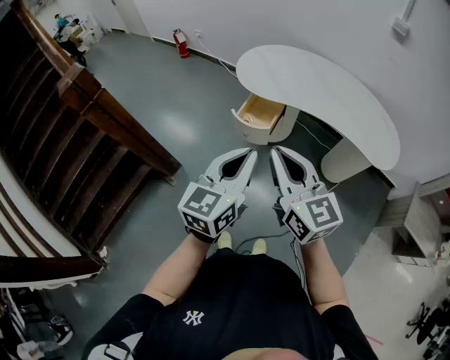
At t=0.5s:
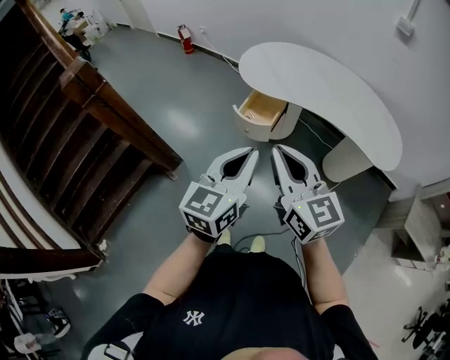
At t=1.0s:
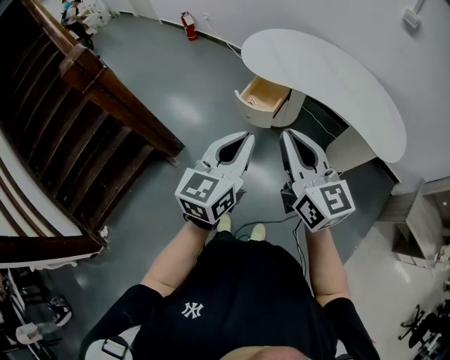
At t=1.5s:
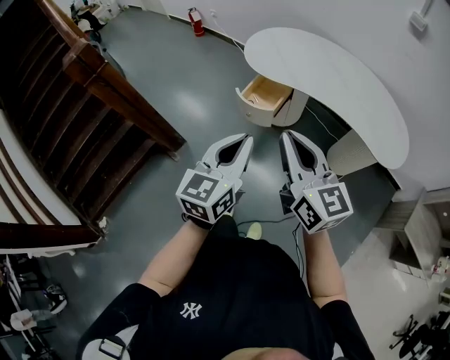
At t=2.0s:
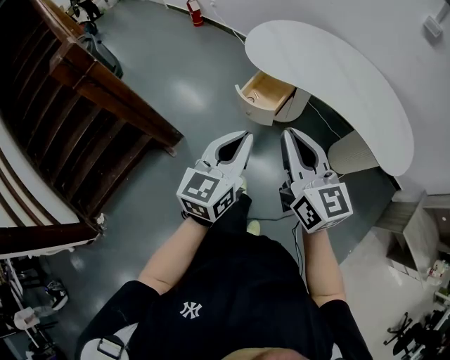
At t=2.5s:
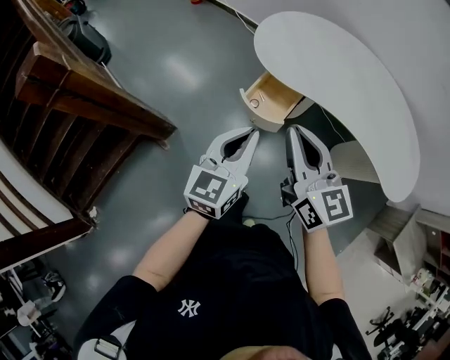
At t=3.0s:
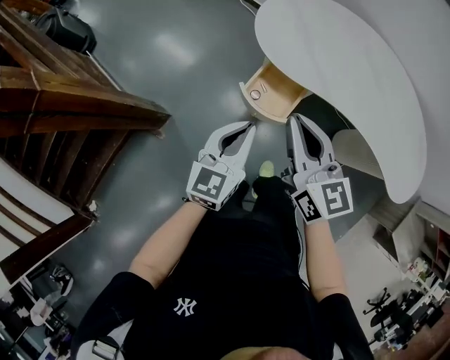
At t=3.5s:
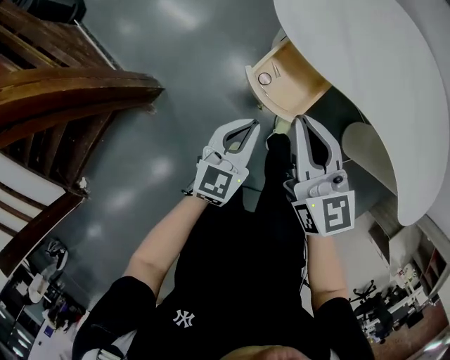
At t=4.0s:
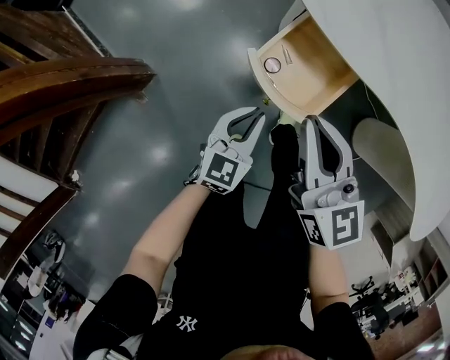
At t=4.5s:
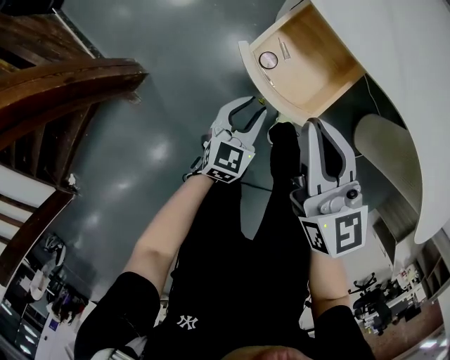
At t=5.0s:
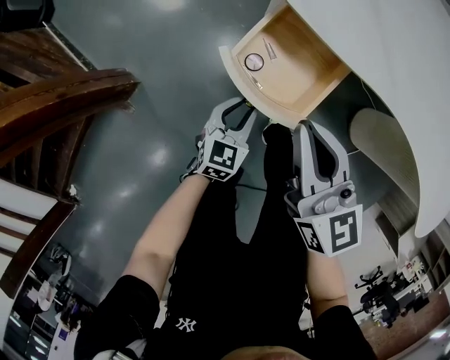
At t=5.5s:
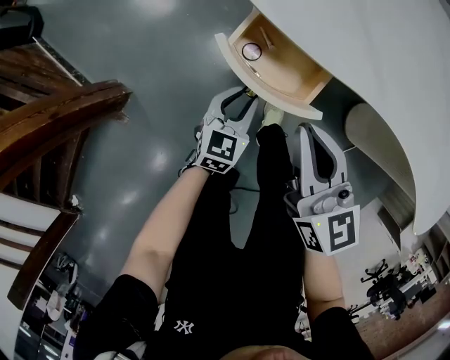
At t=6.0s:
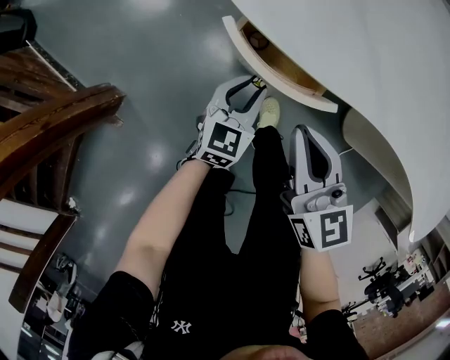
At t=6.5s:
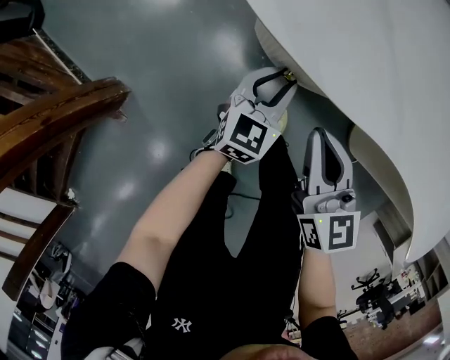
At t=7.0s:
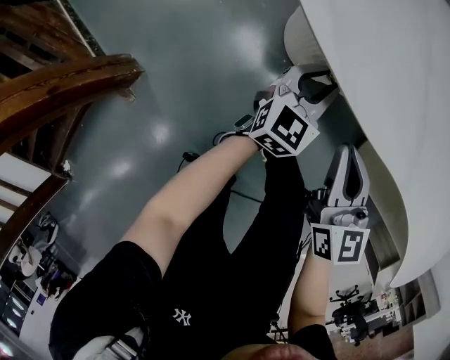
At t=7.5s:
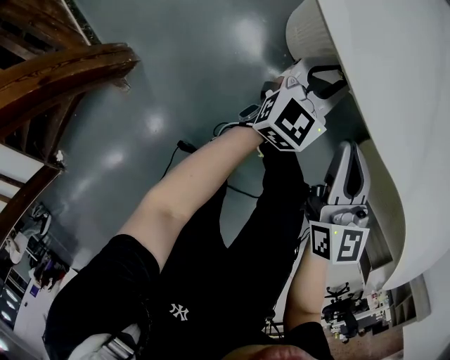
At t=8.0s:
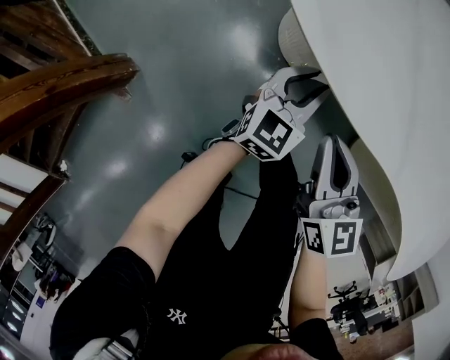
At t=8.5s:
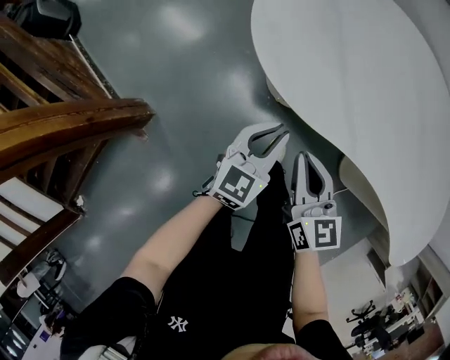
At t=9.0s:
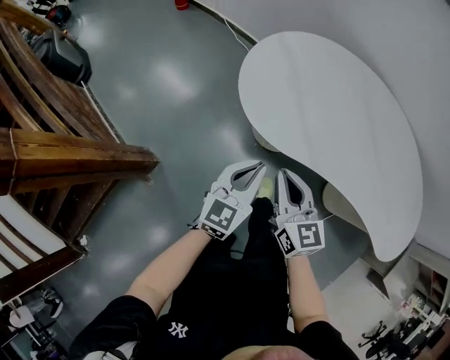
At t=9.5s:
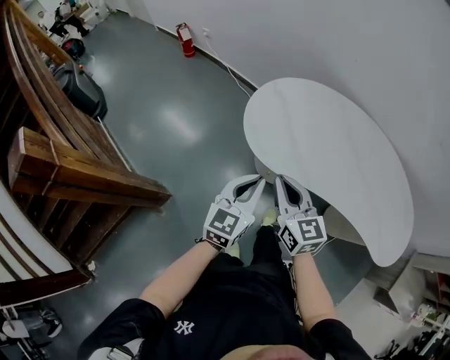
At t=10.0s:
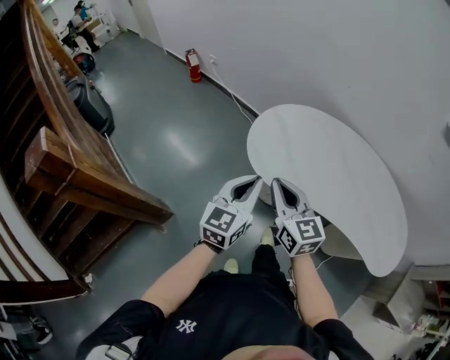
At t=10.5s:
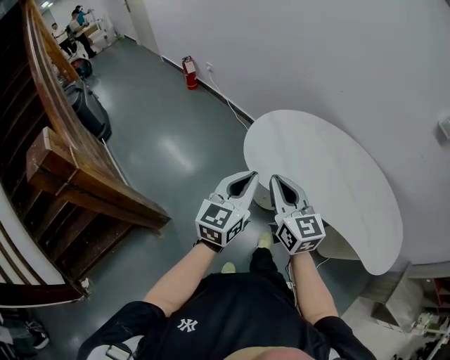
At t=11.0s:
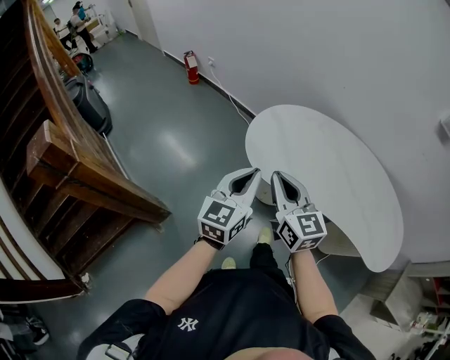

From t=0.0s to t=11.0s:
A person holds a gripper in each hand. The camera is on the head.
From t=0.0s to t=2.0s: The left gripper travels forward and downward by roughly 10 cm, while the right gripper goes approximately 10 cm forward and to the right.
From t=2.0s to t=3.5s: The left gripper travels downward and forward by approximately 40 cm; the right gripper travels forward and downward by roughly 40 cm.
From t=3.5s to t=5.5s: The left gripper is displaced downward by about 25 cm, and opens up. Meanwhile the right gripper heads downward and to the right, covering about 20 cm.
From t=5.5s to t=7.5s: The left gripper heads forward and to the right, covering roughly 20 cm. Meanwhile the right gripper shifts some 10 cm downward and forward.
From t=7.5s to t=9.0s: The right gripper moves upward, roughly 25 cm. The left gripper goes some 35 cm upward and backward, and closes its fingers.
From t=9.0s to t=11.0s: Both grippers move upward, about 20 cm.

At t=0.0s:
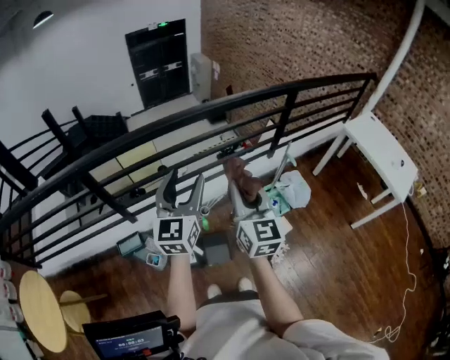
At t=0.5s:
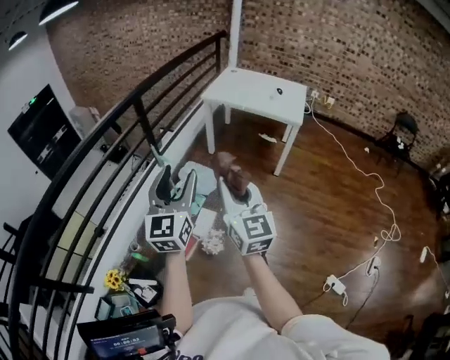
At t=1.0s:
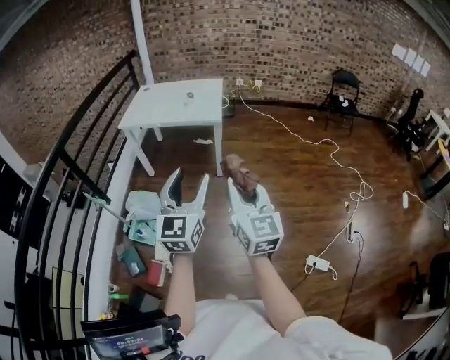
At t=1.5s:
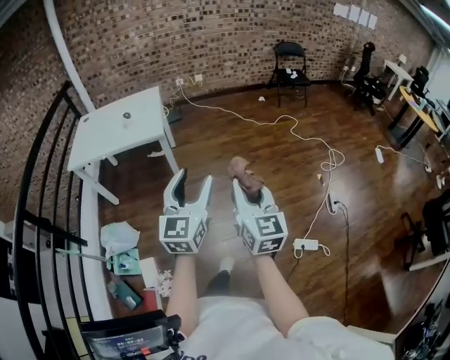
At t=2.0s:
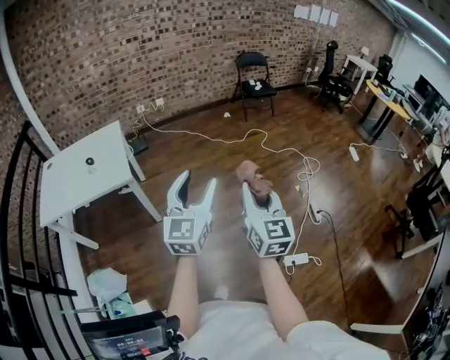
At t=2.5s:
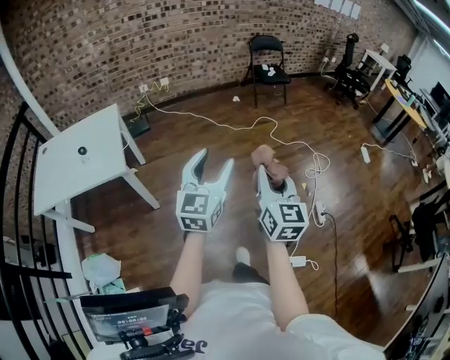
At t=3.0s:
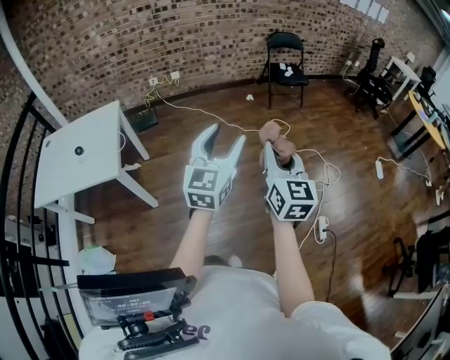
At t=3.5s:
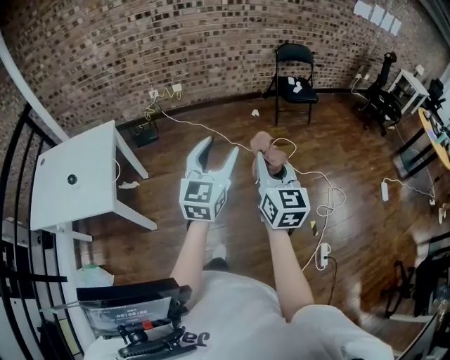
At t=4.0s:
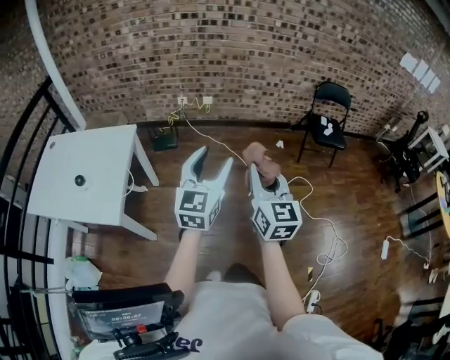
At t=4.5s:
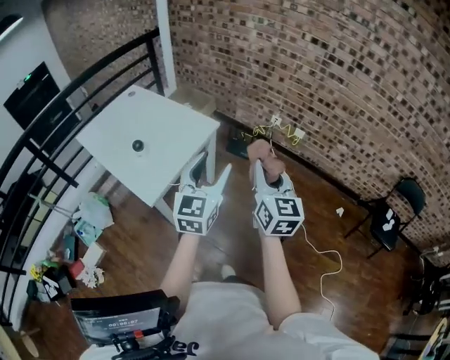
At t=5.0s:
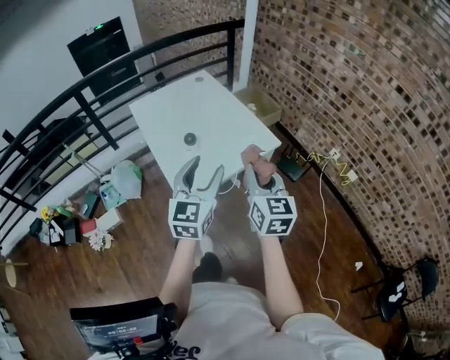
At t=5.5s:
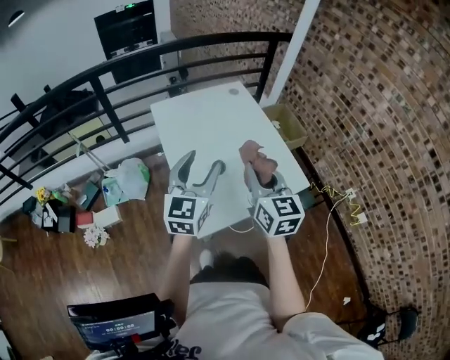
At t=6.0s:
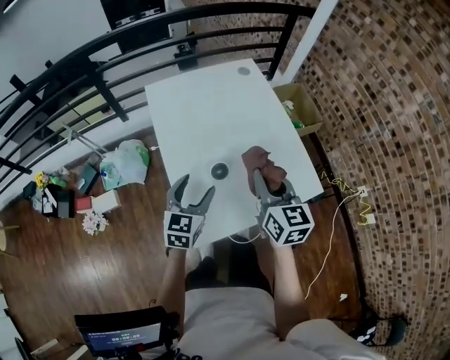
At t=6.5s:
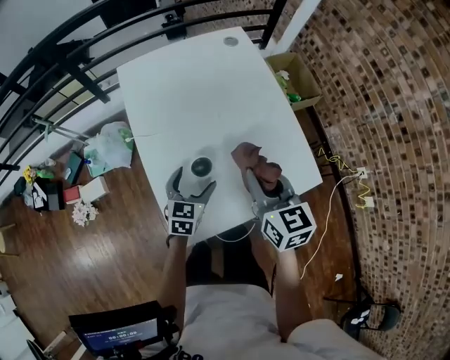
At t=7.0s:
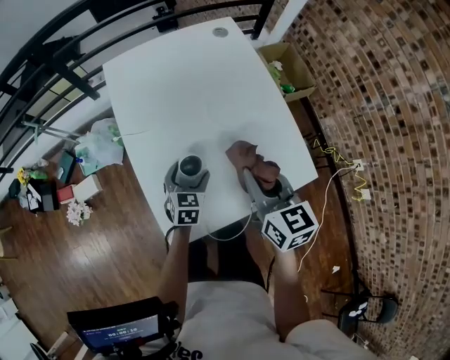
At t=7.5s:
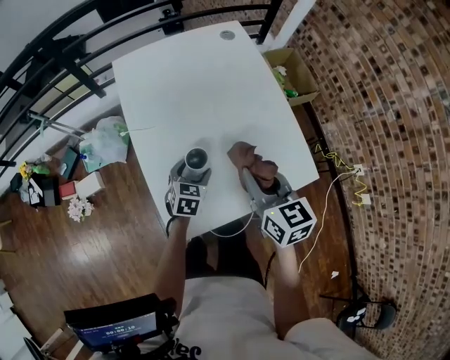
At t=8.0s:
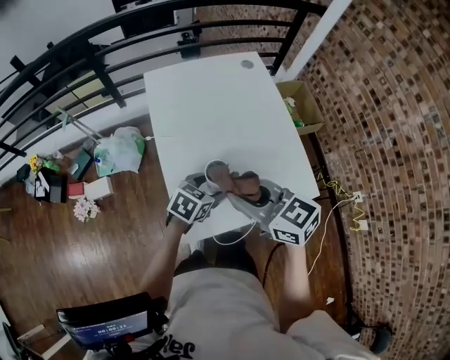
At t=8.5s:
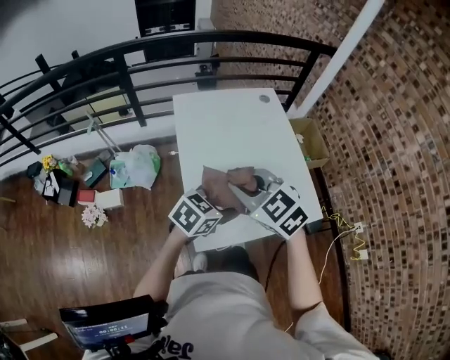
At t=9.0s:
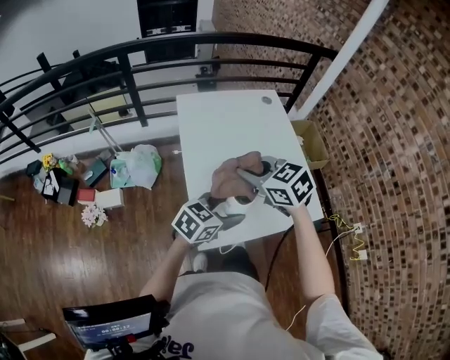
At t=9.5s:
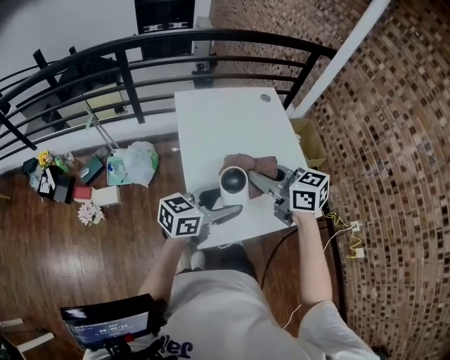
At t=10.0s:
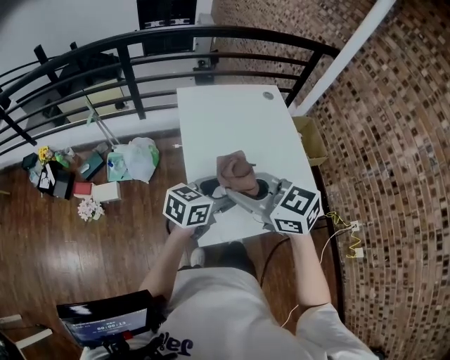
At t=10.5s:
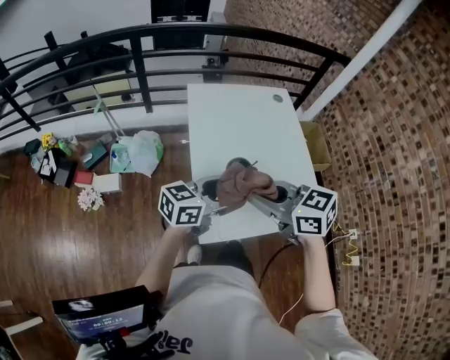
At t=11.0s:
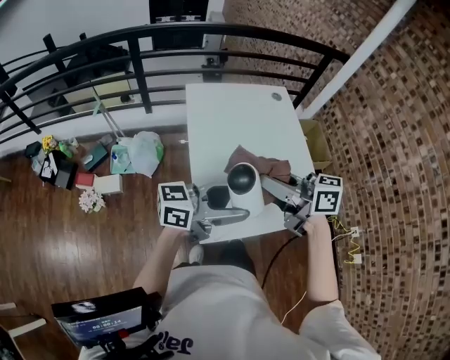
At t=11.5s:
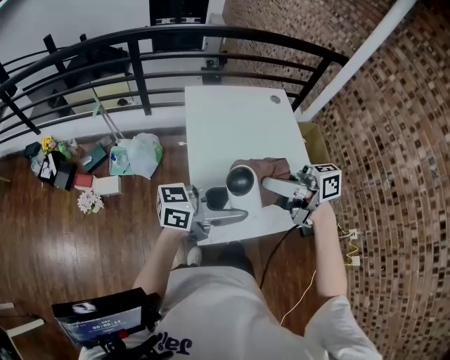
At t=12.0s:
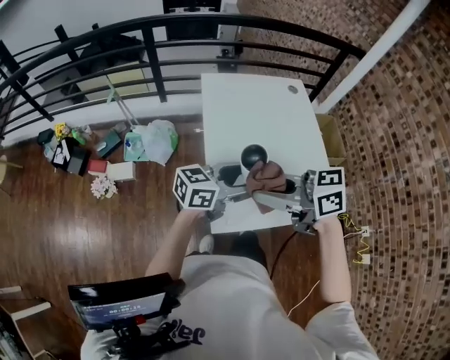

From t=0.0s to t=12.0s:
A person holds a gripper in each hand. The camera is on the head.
From t=0.0s to t=2.0s: Both grippers are carried about 1 m. The right gripper turns by roughly 90 degrees, while the left gripper rotates about 90 degrees.
From t=2.0s to t=4.0s: The pair of grippers is taken forward, about 60 cm. The right gripper turns by roughly 20 degrees.
From t=4.0s to t=6.0s: The pair of grippers is taken roughly 70 cm. The right gripper rotates roughly 80 degrees, while the left gripper swivels roughly 80 degrees.
From t=6.0s to t=8.0s: The left gripper goes approximately 10 cm to the right and downward, and swivels approximately 30 degrees, while the right gripper moves to the left, about 10 cm, and rotates approximately 50 degrees.
From t=8.0s to t=10.0s: The left gripper heads upward and to the left, covering roughly 15 cm, and rotates approximately 30 degrees. Meanwhile the right gripper goes left and right, about 10 cm each way, reversing 2 times.
From t=10.0s to t=12.0s: The right gripper turns by some 30 degrees.

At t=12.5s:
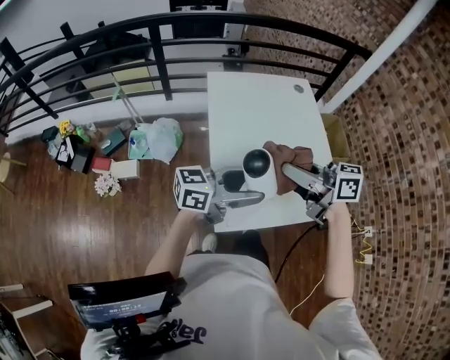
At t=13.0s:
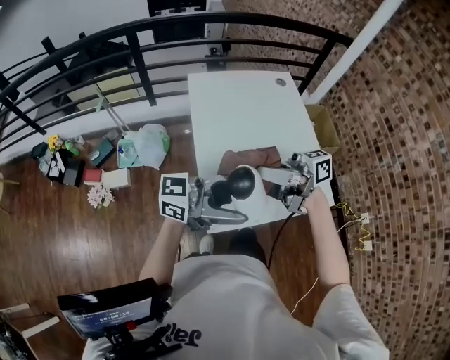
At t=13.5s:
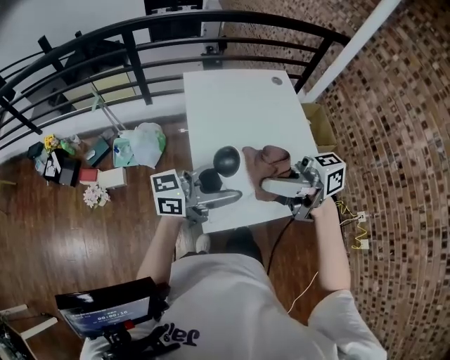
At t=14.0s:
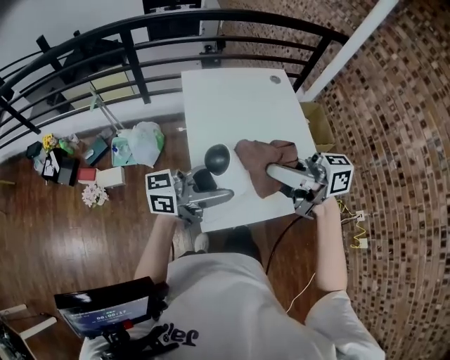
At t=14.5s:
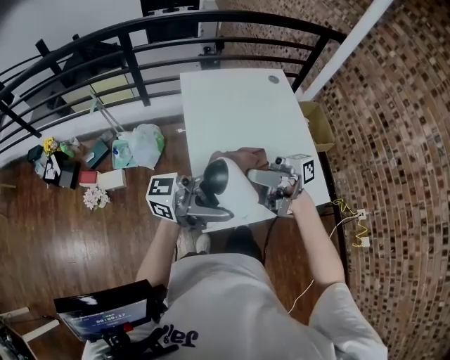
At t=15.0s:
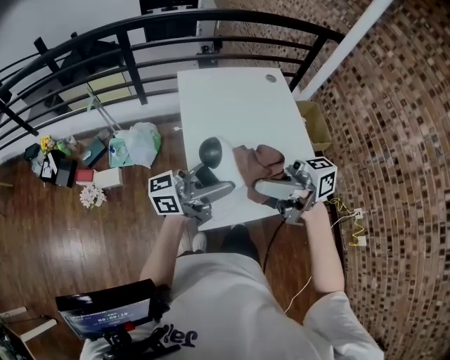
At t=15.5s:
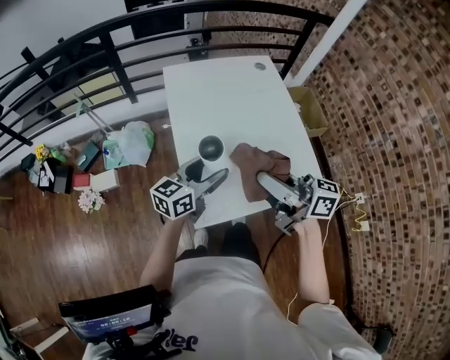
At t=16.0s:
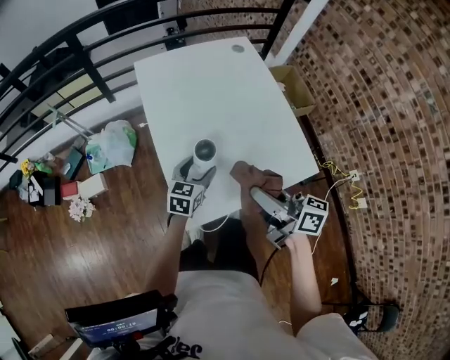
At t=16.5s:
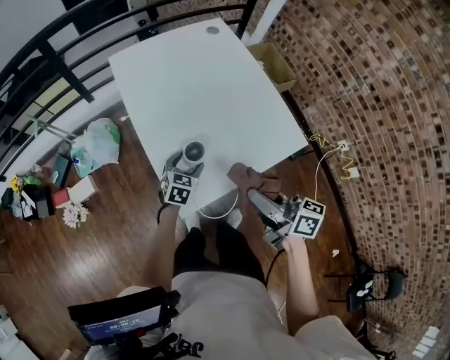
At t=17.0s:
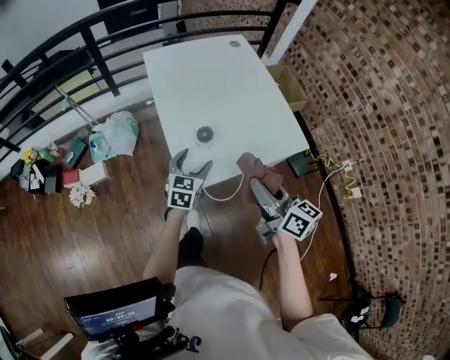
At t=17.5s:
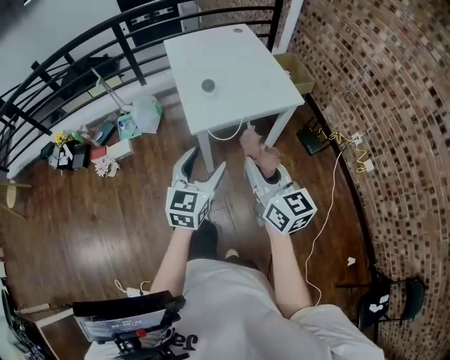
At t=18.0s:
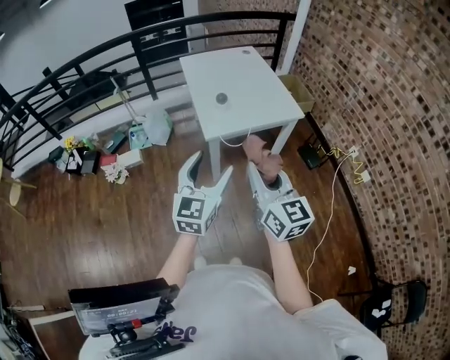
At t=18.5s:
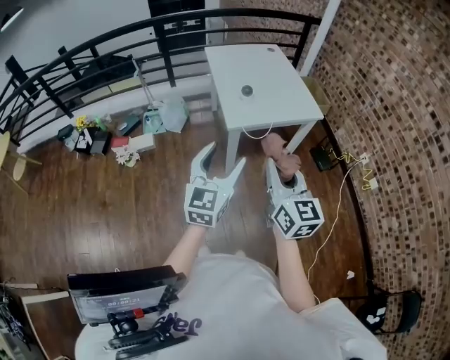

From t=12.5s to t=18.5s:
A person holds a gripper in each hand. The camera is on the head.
From t=12.5s to t=14.5s: The left gripper is displaced upward by approximately 5 cm, and turns by approximately 30 degrees; the right gripper ends up approximately 5 cm from where it was, and angles its fingers upward, by approximately 40 degrees.
From t=14.5s to t=16.5s: The right gripper changes place by about 20 cm, and angles its fingers downward, by some 40 degrees. Meanwhile the left gripper goes approximately 35 cm downward, and tilts its fingers about 70 degrees downward.
From t=16.5s to t=18.5s: The pair of grippers is taken backward, roughly 50 cm. The right gripper rotates roughly 40 degrees; the left gripper heads upward, covering roughly 35 cm, and angles its fingers upward, by about 40 degrees.
